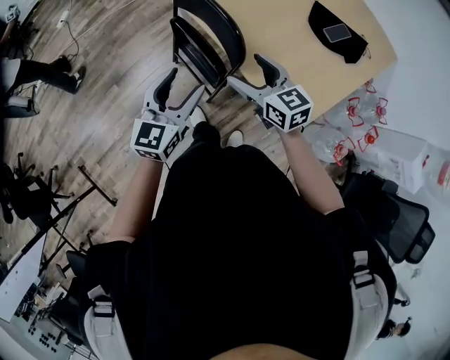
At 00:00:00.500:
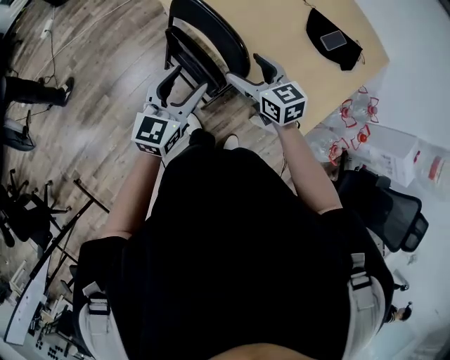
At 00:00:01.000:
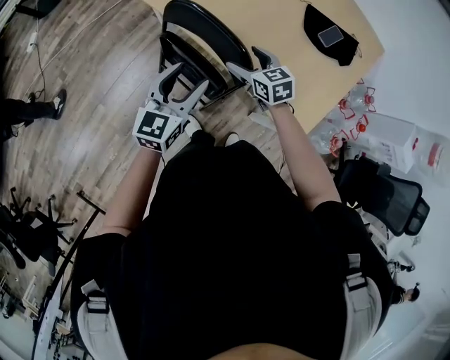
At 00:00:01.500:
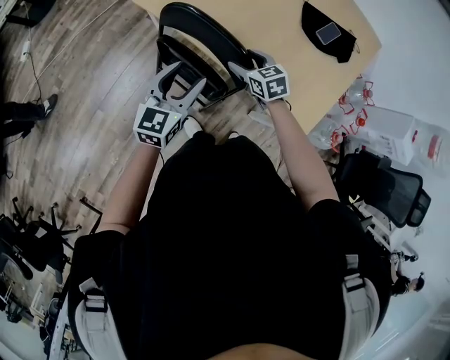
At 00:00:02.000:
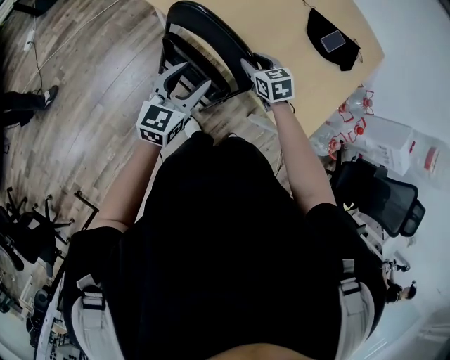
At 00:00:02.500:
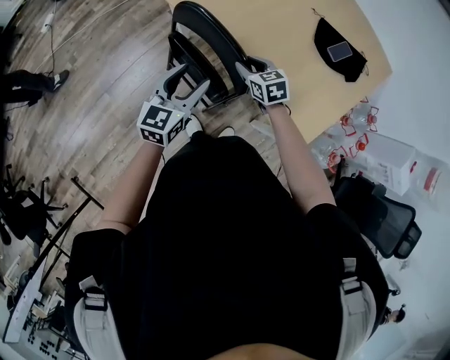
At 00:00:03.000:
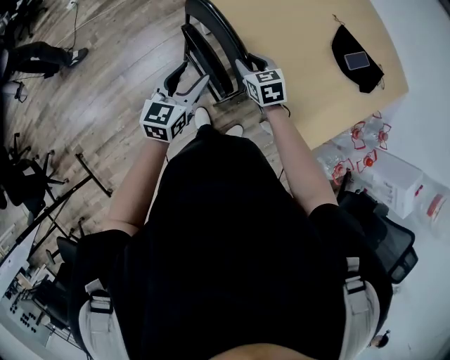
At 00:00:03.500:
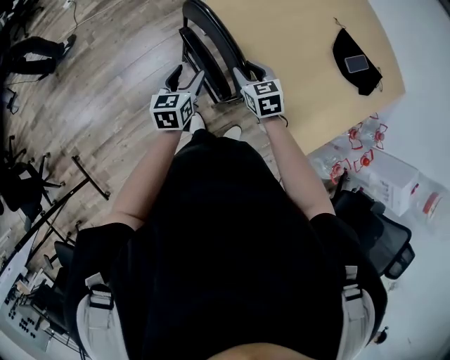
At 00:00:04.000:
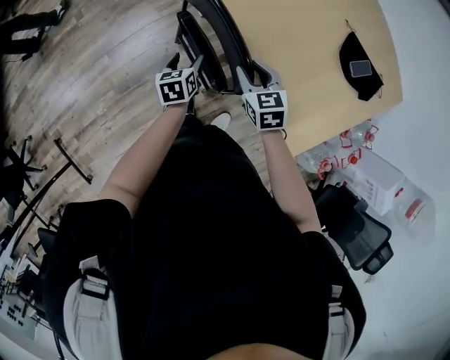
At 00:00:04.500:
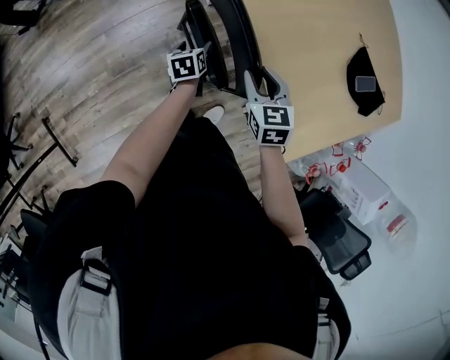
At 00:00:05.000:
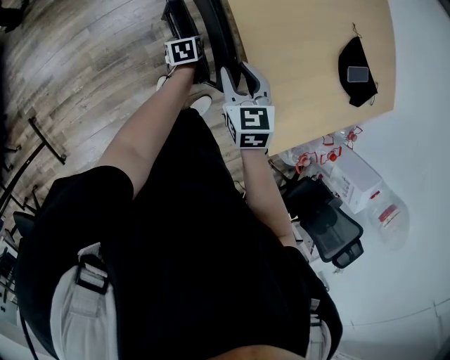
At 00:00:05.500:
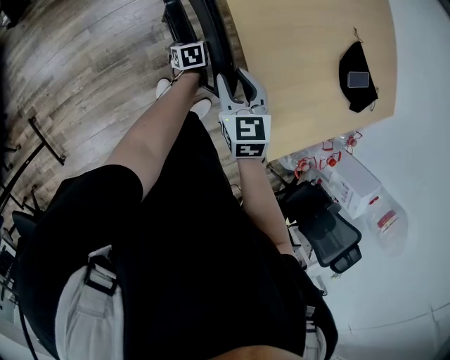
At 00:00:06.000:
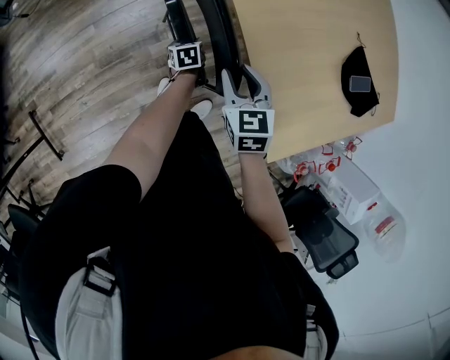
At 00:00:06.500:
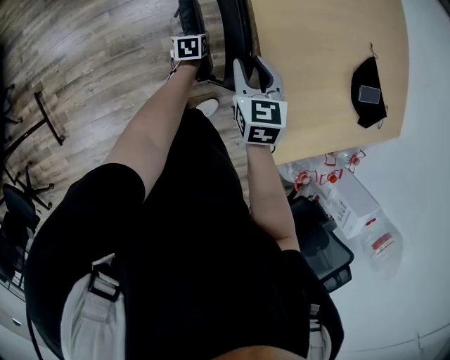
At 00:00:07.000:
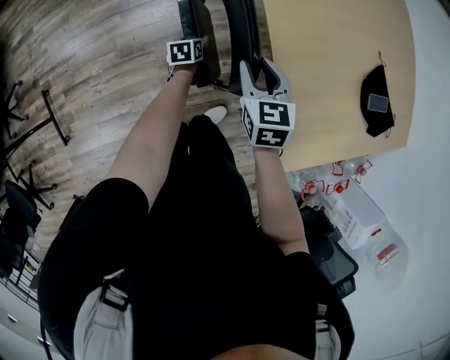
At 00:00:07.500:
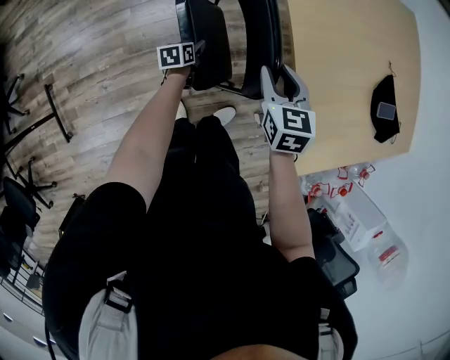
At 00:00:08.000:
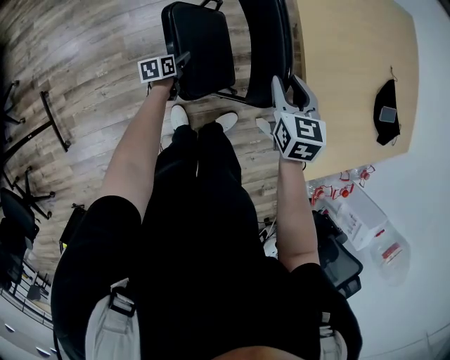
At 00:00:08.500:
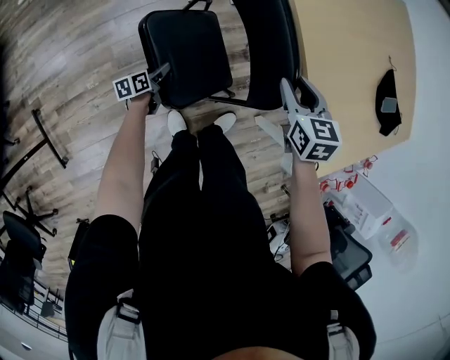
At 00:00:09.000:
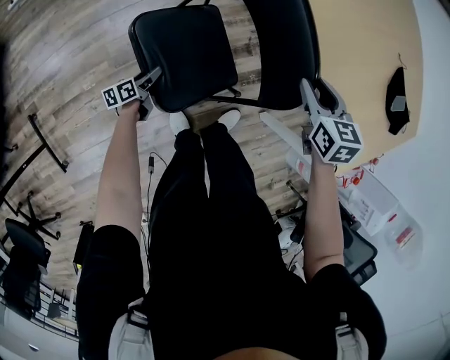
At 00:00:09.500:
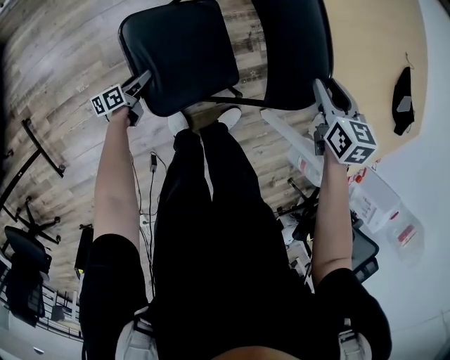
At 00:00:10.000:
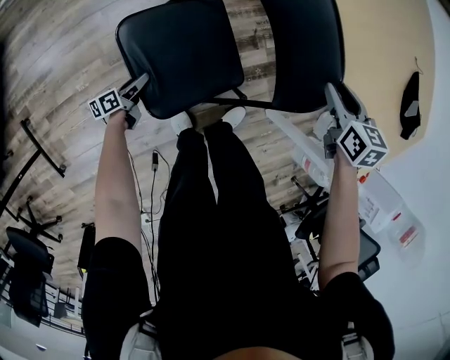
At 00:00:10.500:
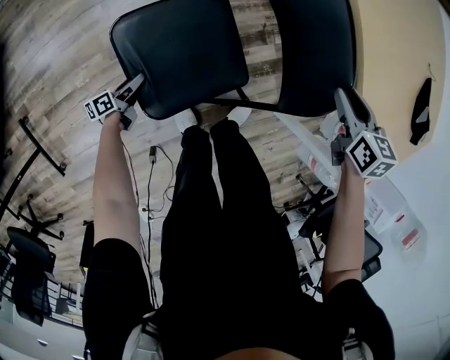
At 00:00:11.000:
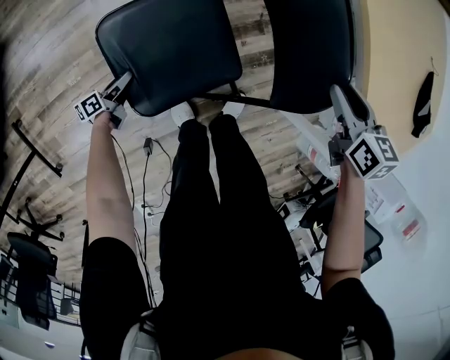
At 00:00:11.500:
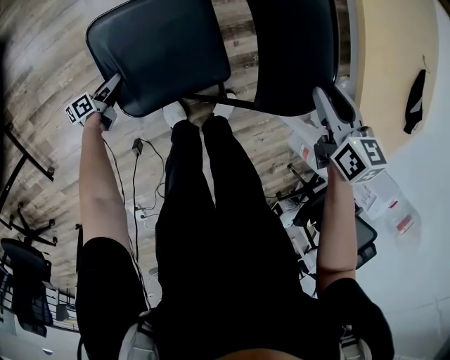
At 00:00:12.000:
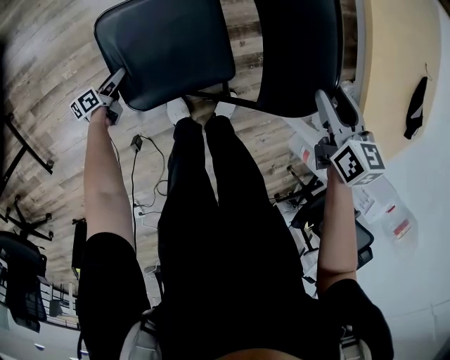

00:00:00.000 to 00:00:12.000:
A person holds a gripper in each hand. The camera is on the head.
00:00:00.000 to 00:00:02.000: Both grippers travel together forward and downward, some 20 cm. The right gripper rotates approximately 30 degrees, and closes up.
00:00:02.000 to 00:00:04.000: The right gripper travels to the left and backward by some 10 cm; the left gripper goes roughly 20 cm downward and to the left, and turns by some 50 degrees.
00:00:04.000 to 00:00:06.000: The left gripper shifts roughly 15 cm downward.
00:00:06.000 to 00:00:08.000: The right gripper goes some 5 cm to the left, while the left gripper heads to the left and backward, covering some 25 cm, and swivels some 20 degrees.
00:00:08.000 to 00:00:10.000: The left gripper shifts some 20 cm downward and to the left, and turns by about 20 degrees, while the right gripper heads downward, to the right and forward, covering approximately 15 cm.
00:00:10.000 to 00:00:12.000: The right gripper is displaced to the left and backward by roughly 10 cm. The left gripper heads downward, to the left and backward, covering roughly 15 cm.

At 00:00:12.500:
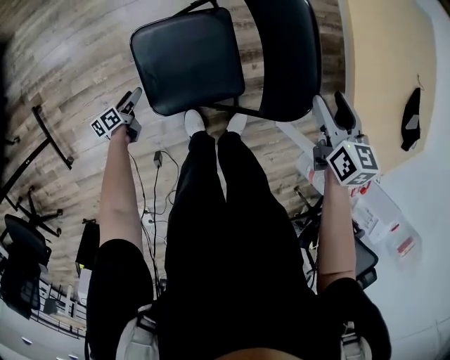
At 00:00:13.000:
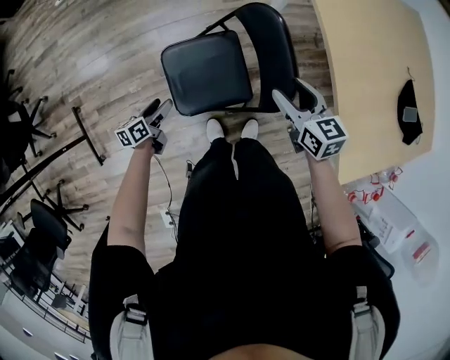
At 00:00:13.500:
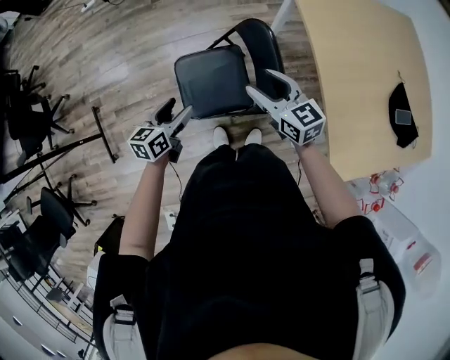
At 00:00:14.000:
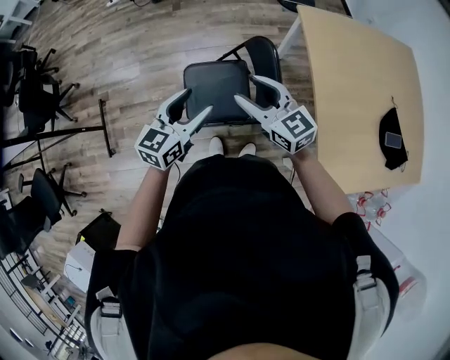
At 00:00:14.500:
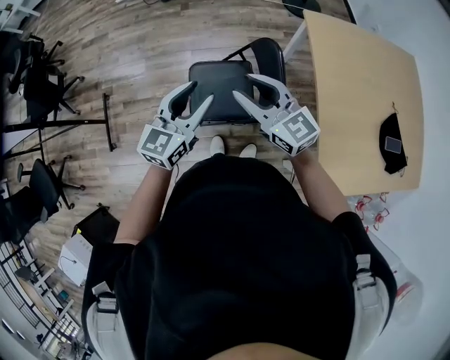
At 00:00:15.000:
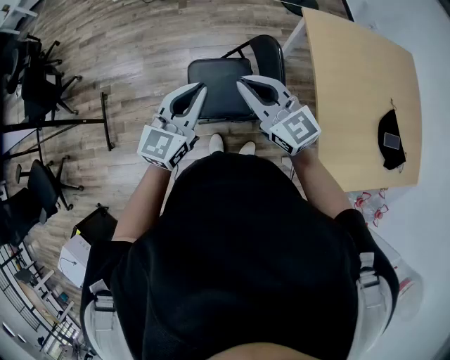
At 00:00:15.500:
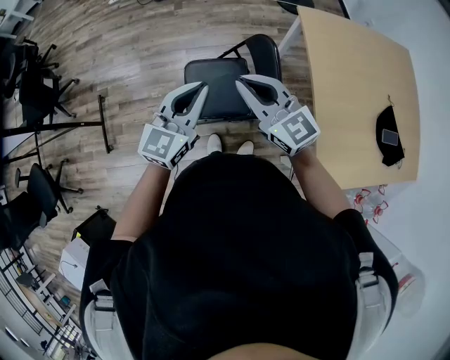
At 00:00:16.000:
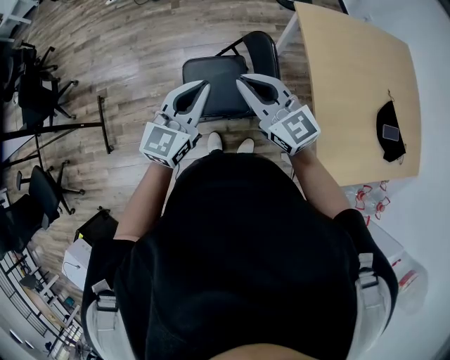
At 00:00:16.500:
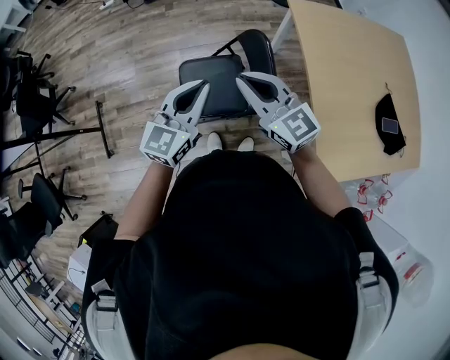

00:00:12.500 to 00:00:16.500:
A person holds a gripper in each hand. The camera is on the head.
00:00:12.500 to 00:00:14.500: The left gripper shifts approximately 70 cm upward, rolls clockwise, seen from behind, by approximately 60 degrees, and closes up. The right gripper shifts some 35 cm upward, and tilts its fingers approximately 40 degrees upward.
00:00:14.500 to 00:00:16.500: The right gripper closes; the left gripper closes.

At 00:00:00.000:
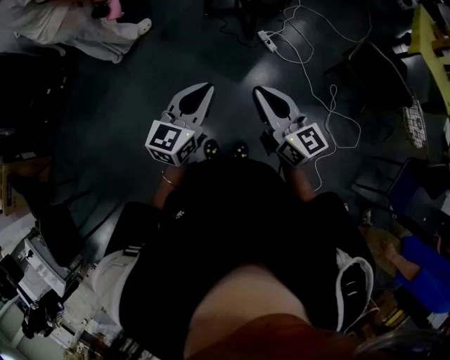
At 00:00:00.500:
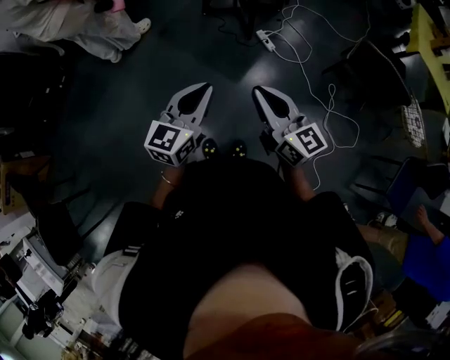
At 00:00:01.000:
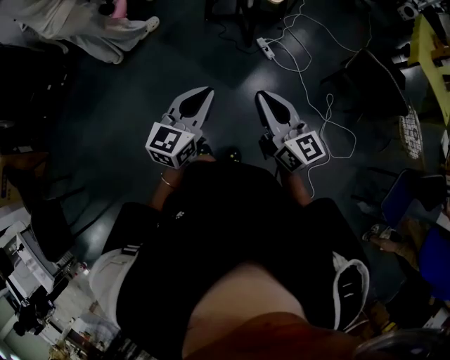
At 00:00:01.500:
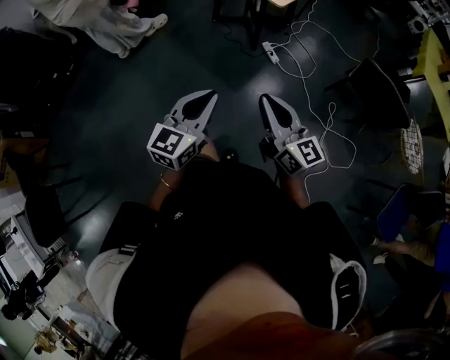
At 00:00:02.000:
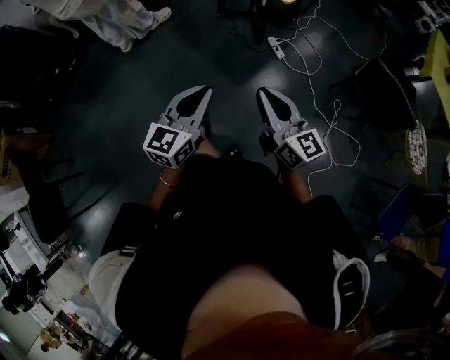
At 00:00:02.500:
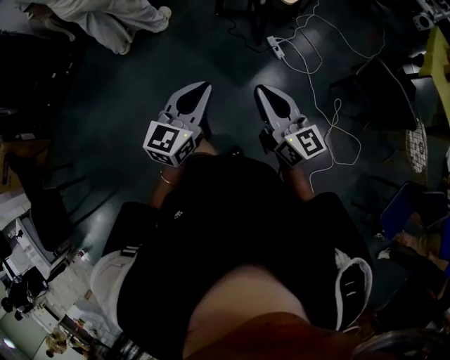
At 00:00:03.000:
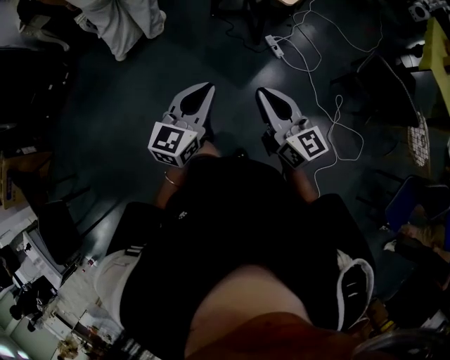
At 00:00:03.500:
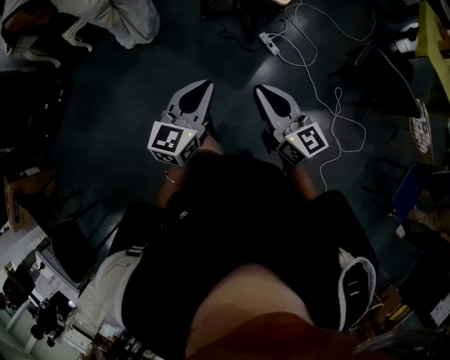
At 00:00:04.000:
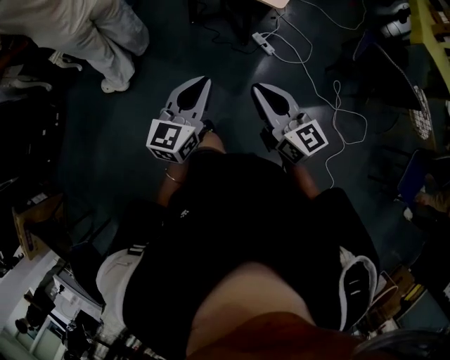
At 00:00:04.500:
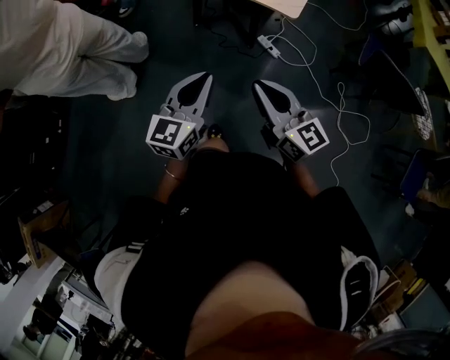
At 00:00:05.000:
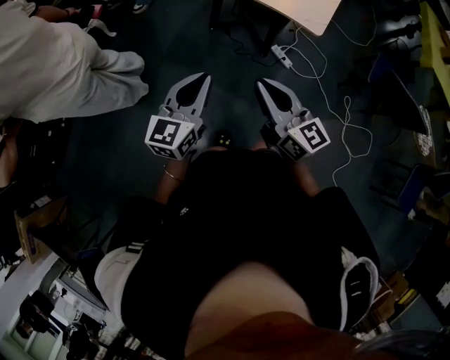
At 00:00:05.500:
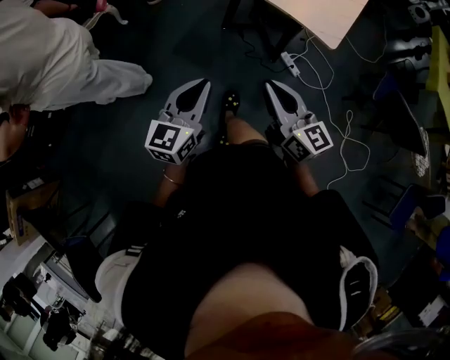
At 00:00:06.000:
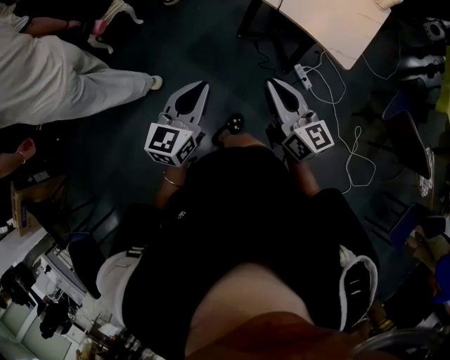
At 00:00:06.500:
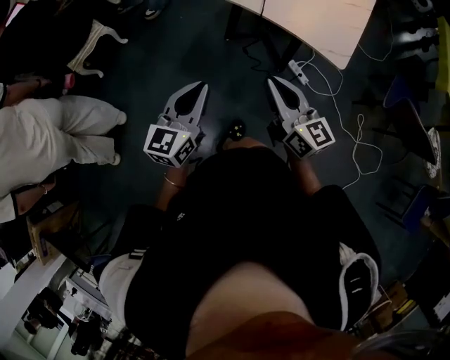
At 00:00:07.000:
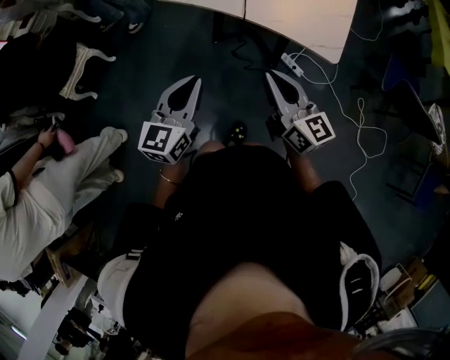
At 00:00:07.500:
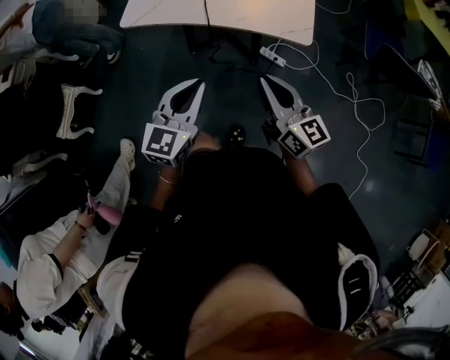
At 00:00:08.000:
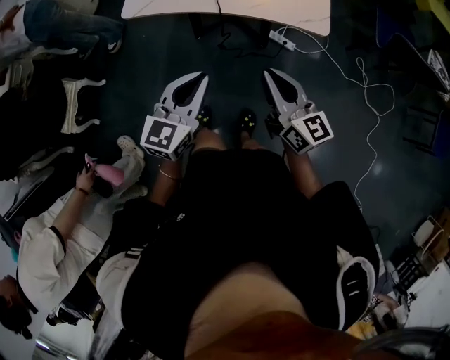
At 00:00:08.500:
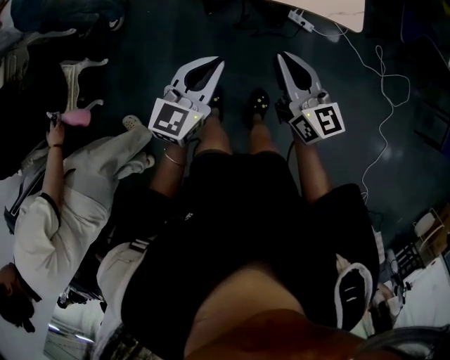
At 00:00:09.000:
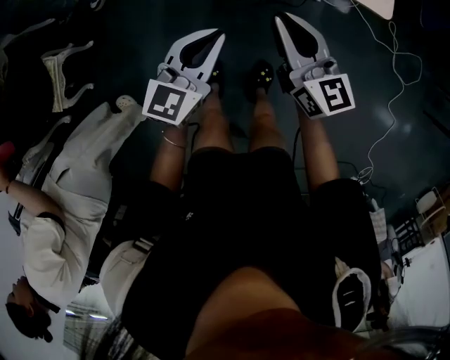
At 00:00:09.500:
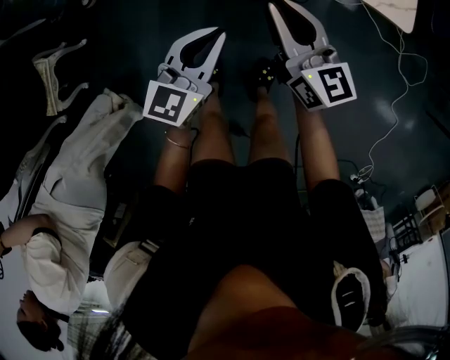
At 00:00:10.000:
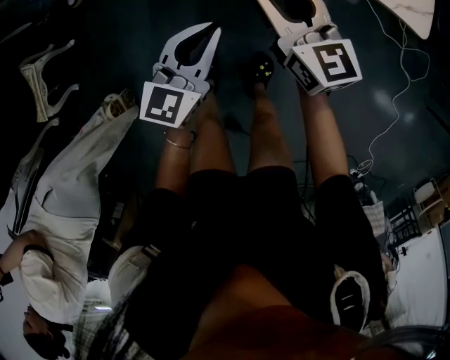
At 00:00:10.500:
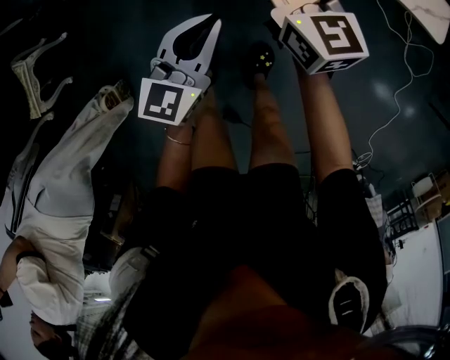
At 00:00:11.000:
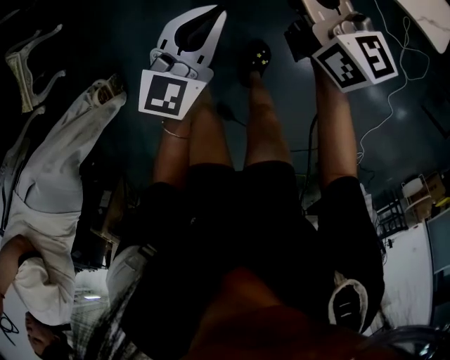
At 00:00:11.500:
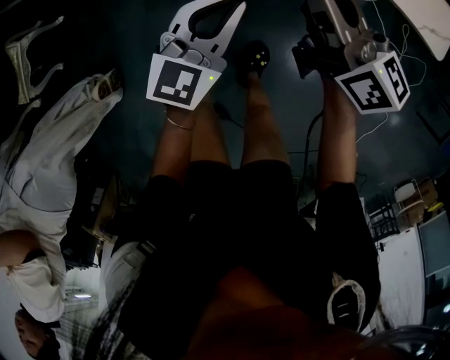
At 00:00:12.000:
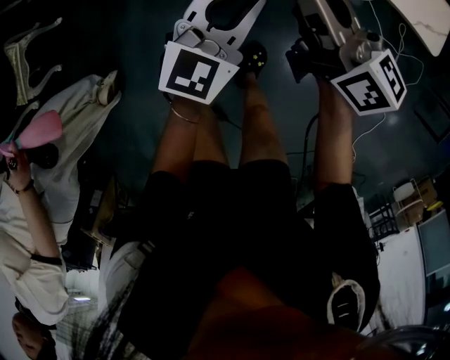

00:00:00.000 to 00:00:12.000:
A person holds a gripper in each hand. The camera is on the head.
00:00:00.000 to 00:00:02.000: The right gripper heads to the right, covering approximately 5 cm.
00:00:02.000 to 00:00:04.000: The left gripper is displaced forward by about 20 cm, while the right gripper shifts some 20 cm forward and to the left.
00:00:04.000 to 00:00:06.000: The right gripper shifts roughly 25 cm forward and to the left. Meanwhile the left gripper is displaced to the left and forward by approximately 25 cm.
00:00:06.000 to 00:00:08.000: The left gripper moves about 20 cm, and rotates about 30 degrees, while the right gripper shifts by approximately 15 cm, and rotates roughly 30 degrees.
00:00:08.000 to 00:00:10.000: The right gripper goes roughly 25 cm downward, forward and to the left, and opens up; the left gripper moves downward, approximately 20 cm.
00:00:10.000 to 00:00:12.000: The right gripper swivels about 30 degrees, and closes its fingers; the left gripper shifts by roughly 5 cm.
